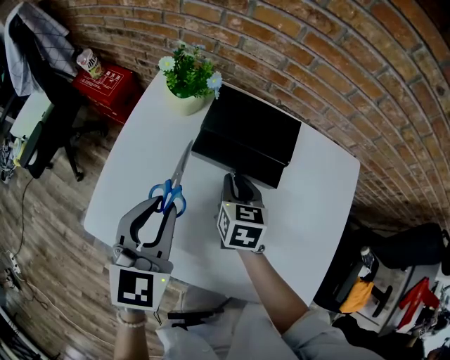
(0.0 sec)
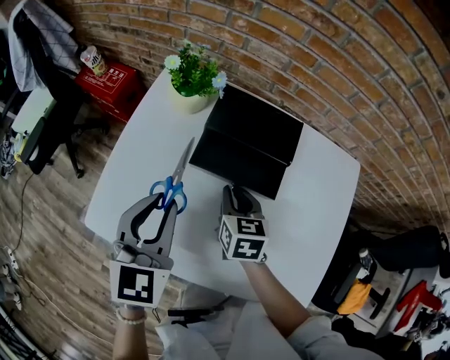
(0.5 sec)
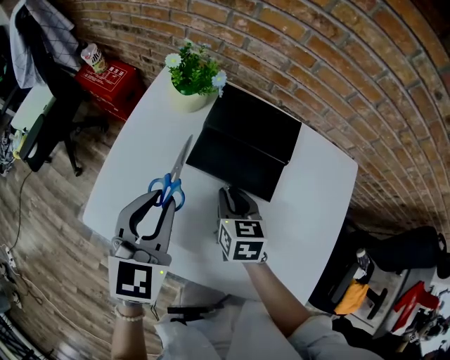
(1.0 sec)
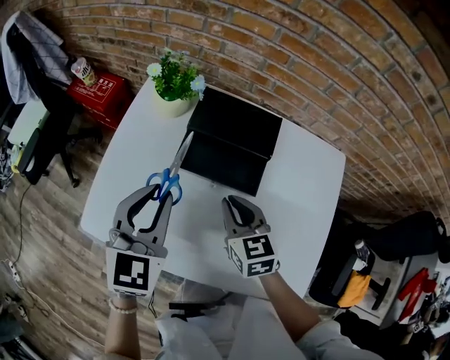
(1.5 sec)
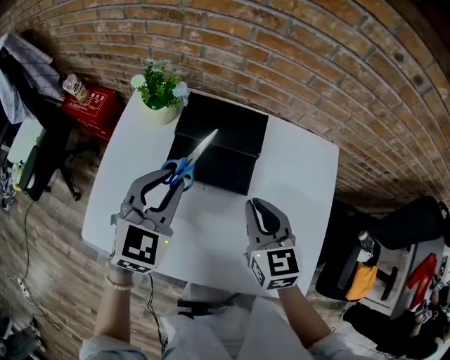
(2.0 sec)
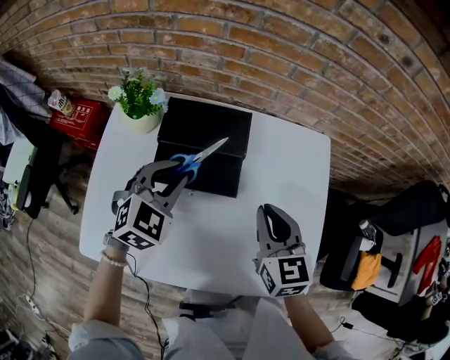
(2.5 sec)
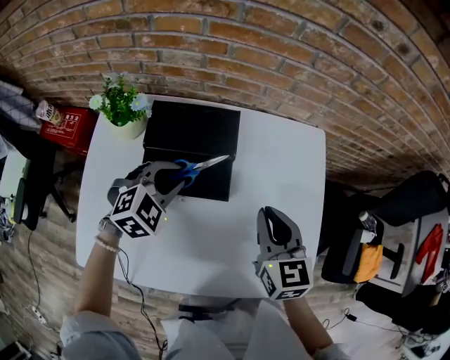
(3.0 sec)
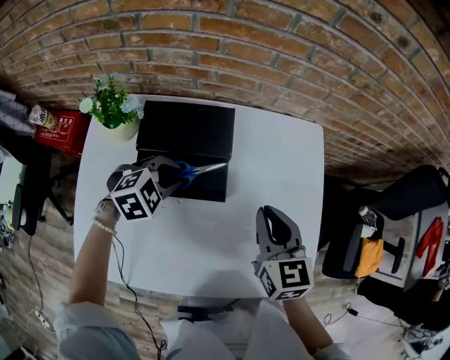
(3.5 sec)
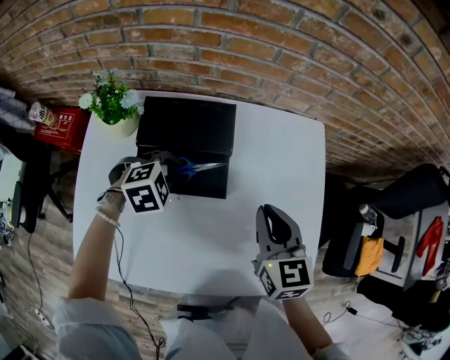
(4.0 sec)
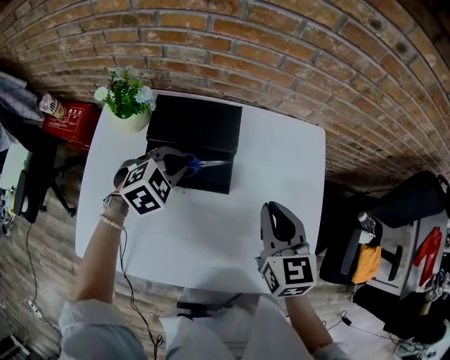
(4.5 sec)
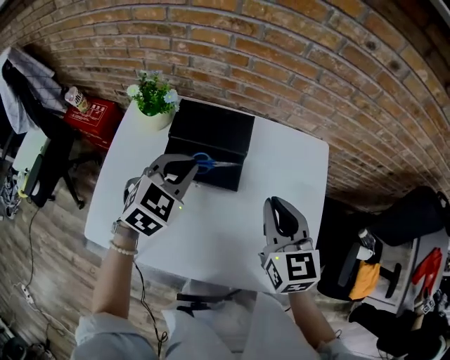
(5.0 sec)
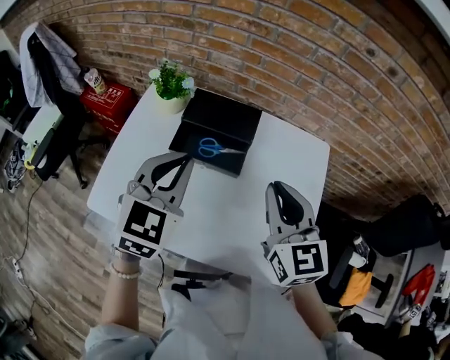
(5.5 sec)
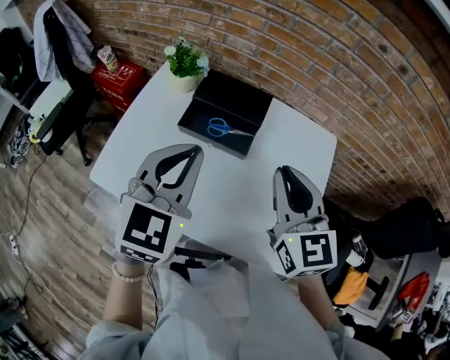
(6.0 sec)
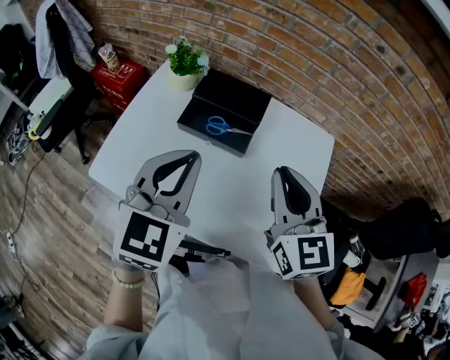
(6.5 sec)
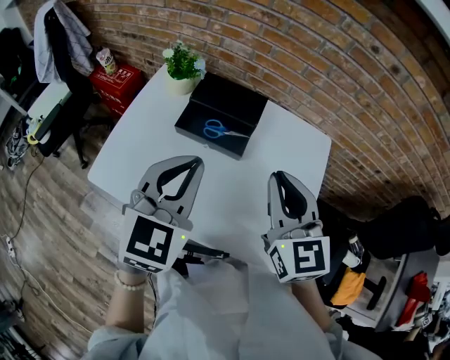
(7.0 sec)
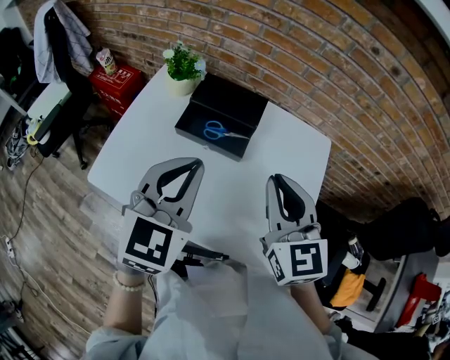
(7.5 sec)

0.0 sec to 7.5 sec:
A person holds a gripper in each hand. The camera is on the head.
0.0 sec to 2.0 sec: The left gripper heads to the right, covering approximately 5 cm, and swivels approximately 20 degrees; the right gripper is displaced upward, to the right and backward by some 15 cm.
2.0 sec to 4.0 sec: The right gripper moves some 10 cm. Meanwhile the left gripper shifts some 15 cm downward, and angles its fingers downward, by some 40 degrees.
4.0 sec to 5.5 sec: The left gripper moves upward, approximately 25 cm, and angles its fingers upward, by roughly 40 degrees. The right gripper goes about 15 cm upward, and swivels approximately 20 degrees.
5.5 sec to 7.5 sec: The left gripper goes roughly 10 cm backward, while the right gripper moves about 5 cm.

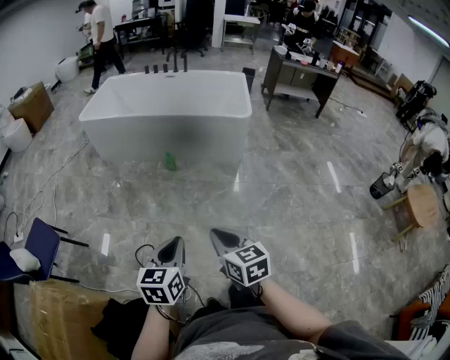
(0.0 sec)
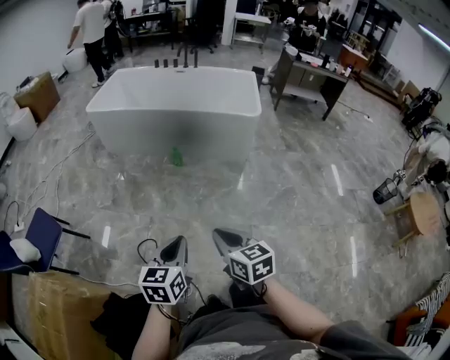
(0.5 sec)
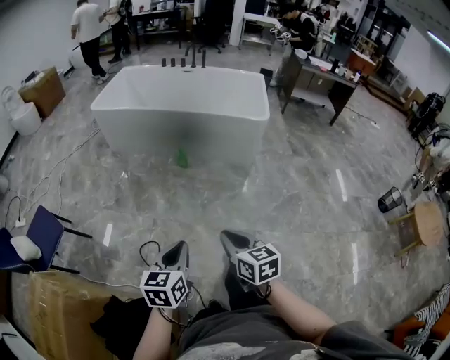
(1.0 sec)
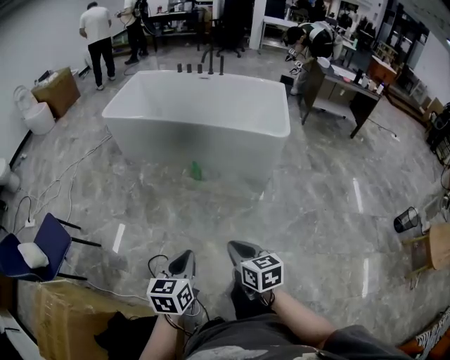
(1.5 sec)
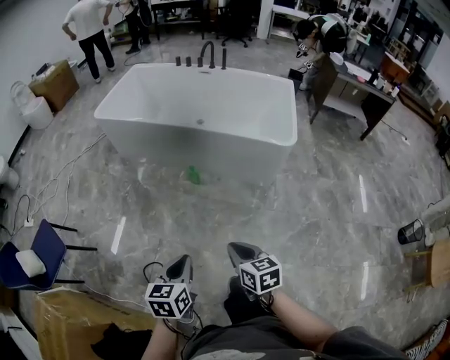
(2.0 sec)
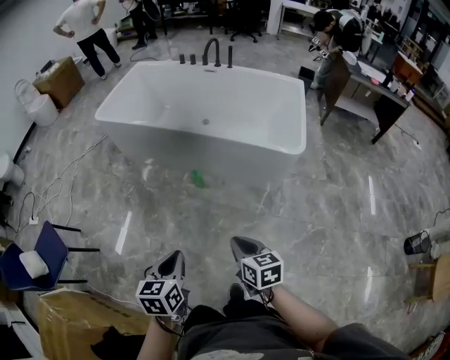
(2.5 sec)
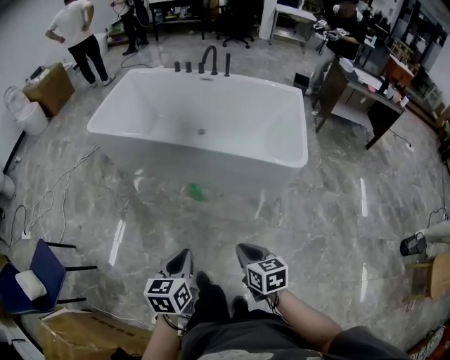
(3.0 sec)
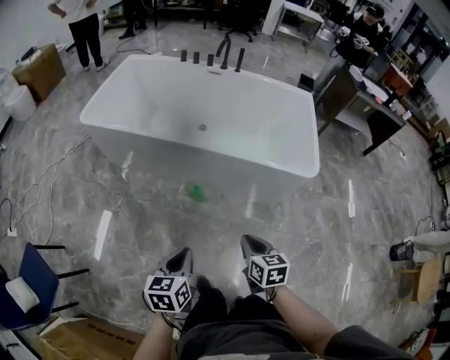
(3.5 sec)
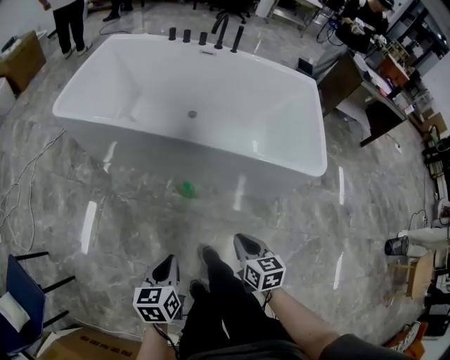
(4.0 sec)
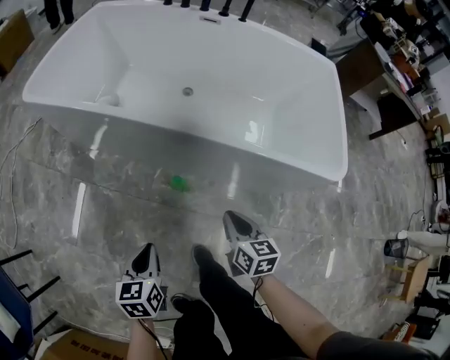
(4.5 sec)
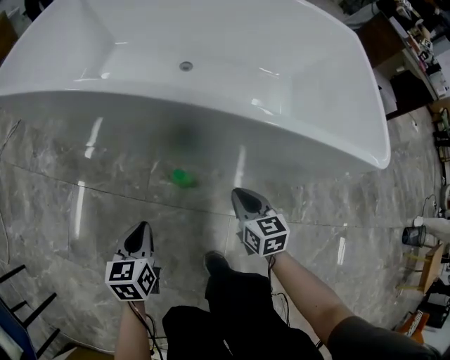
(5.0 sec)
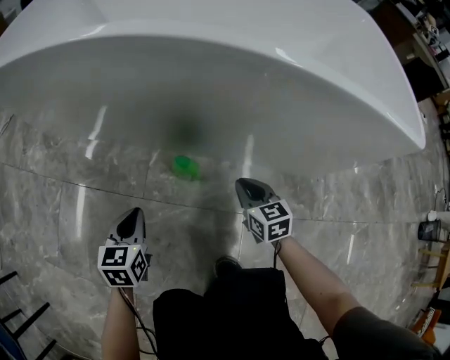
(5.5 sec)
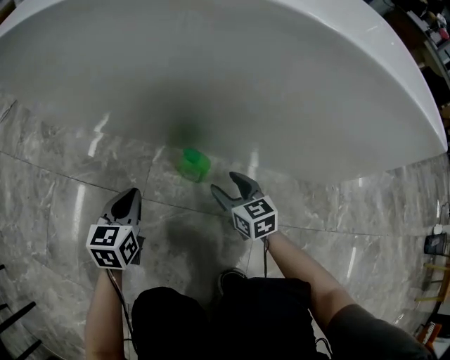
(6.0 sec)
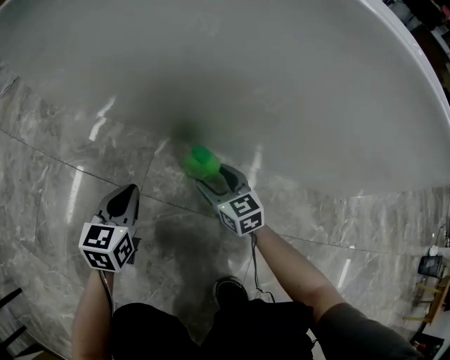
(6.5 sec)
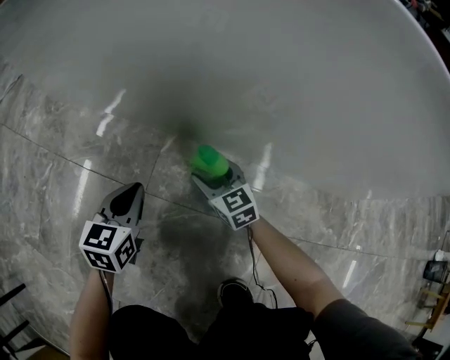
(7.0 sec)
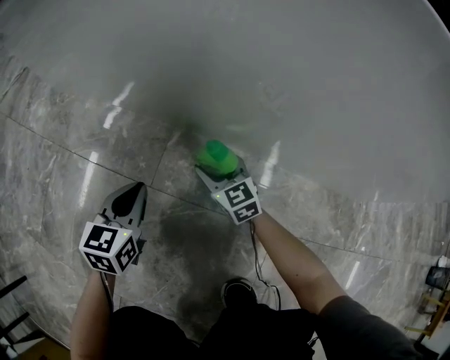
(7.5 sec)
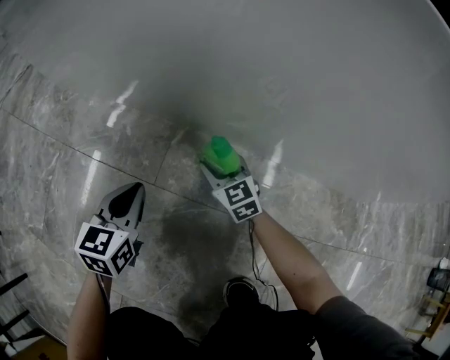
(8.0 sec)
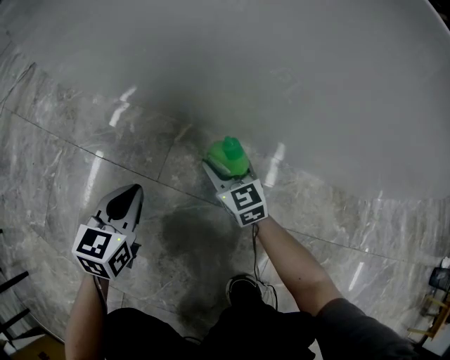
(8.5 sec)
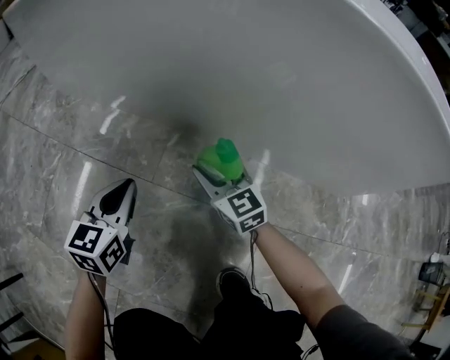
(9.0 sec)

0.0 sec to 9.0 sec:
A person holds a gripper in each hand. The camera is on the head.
0.0 sec to 2.0 sec: The grippers both shift forward by approximately 25 cm.
2.0 sec to 4.5 sec: The pair of grippers is taken forward, approximately 40 cm. Both grippers move downward, some 30 cm.
4.5 sec to 7.0 sec: The right gripper travels downward by about 50 cm, rotates approximately 40 degrees, and opens up. The left gripper heads downward and forward, covering about 40 cm.
7.0 sec to 9.0 sec: The two grippers go some 10 cm upward.

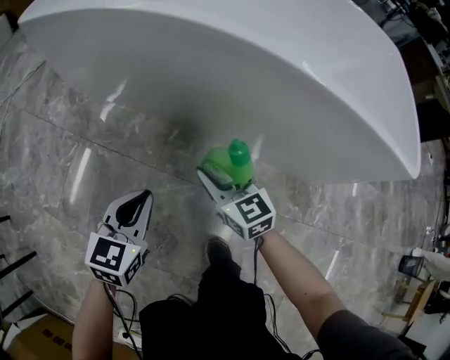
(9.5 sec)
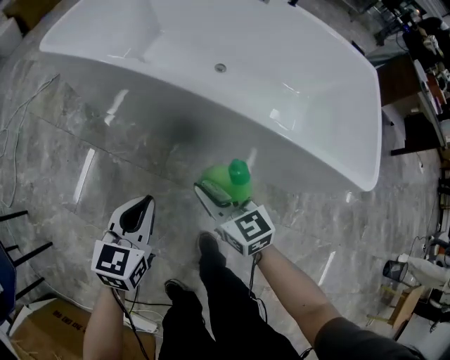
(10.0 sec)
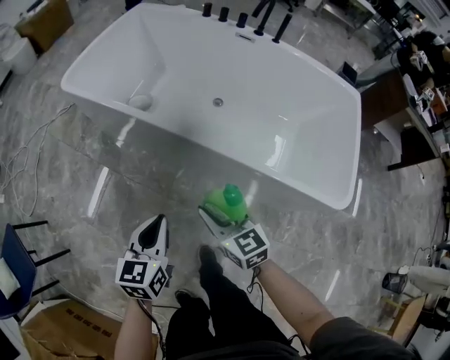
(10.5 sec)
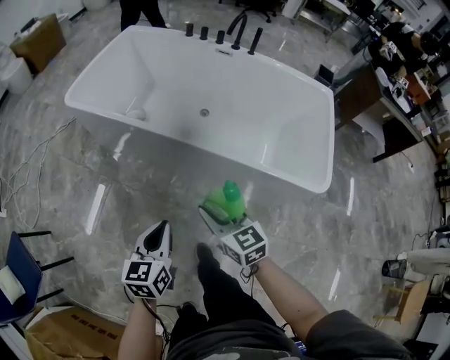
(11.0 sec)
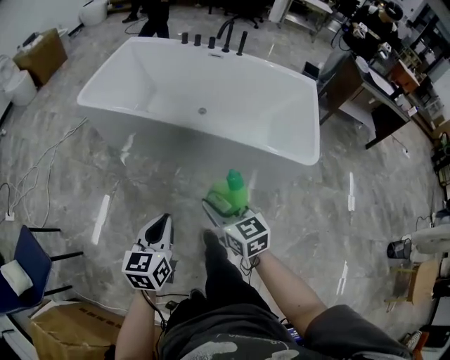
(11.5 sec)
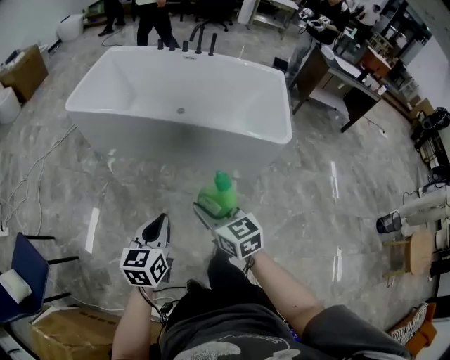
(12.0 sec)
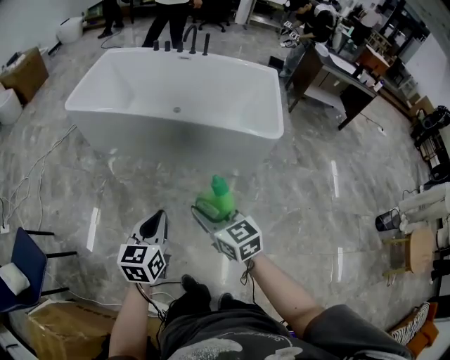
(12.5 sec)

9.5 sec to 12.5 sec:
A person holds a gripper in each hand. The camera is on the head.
9.5 sec to 11.0 sec: The grippers both shift upward by approximately 40 cm.
11.0 sec to 12.5 sec: The left gripper shifts roughly 25 cm backward and upward. Meanwhile the right gripper heads backward, covering about 30 cm.

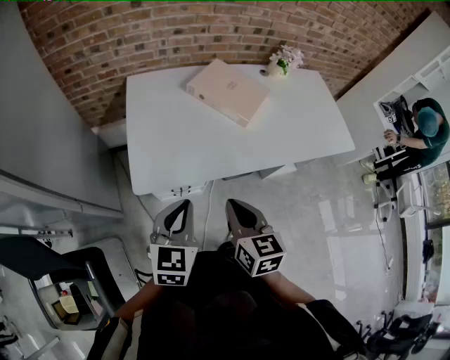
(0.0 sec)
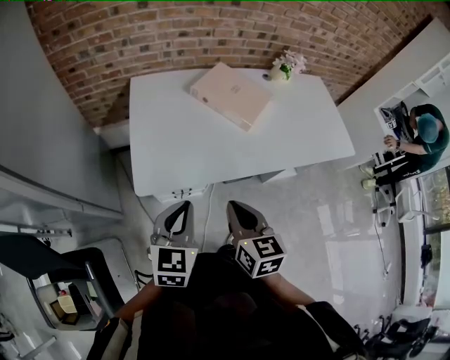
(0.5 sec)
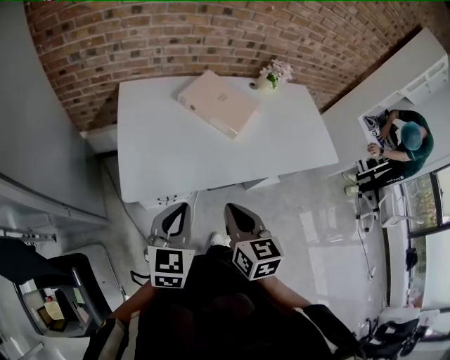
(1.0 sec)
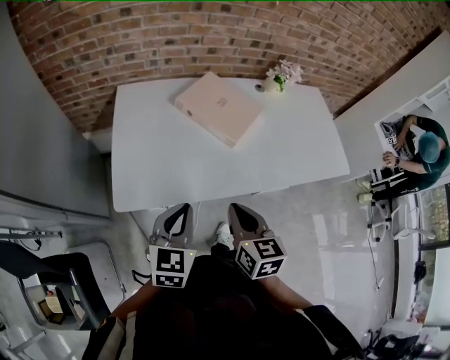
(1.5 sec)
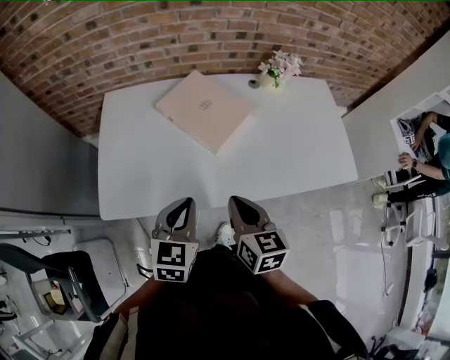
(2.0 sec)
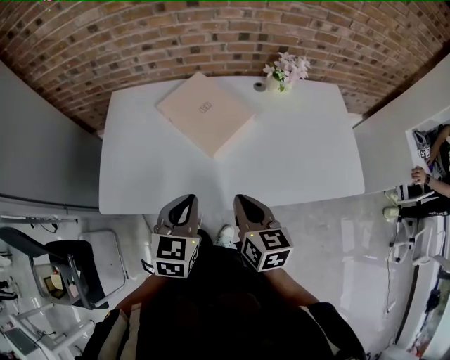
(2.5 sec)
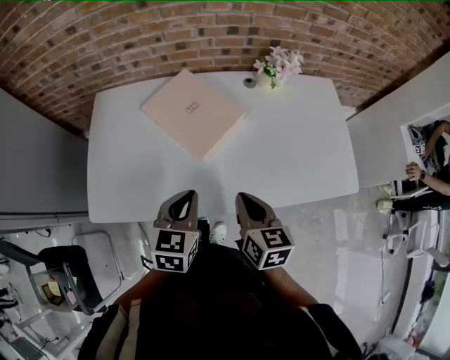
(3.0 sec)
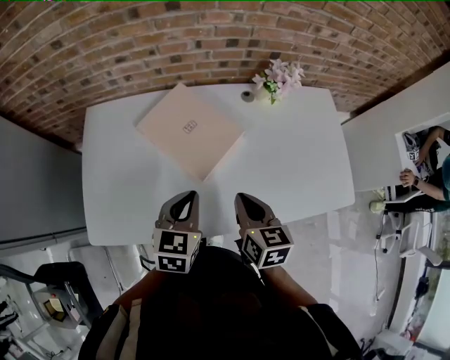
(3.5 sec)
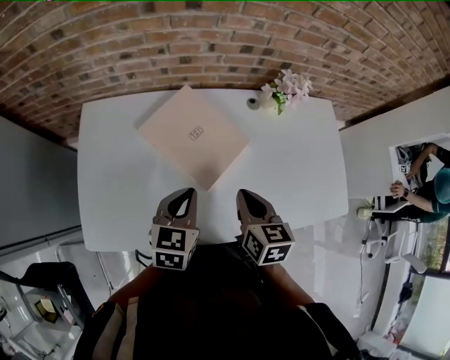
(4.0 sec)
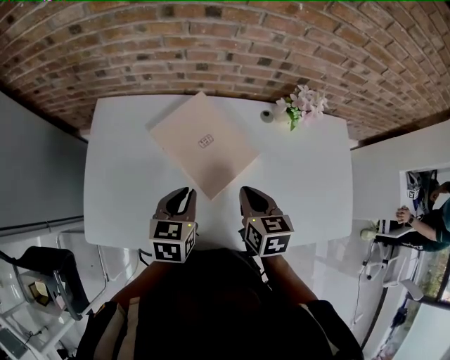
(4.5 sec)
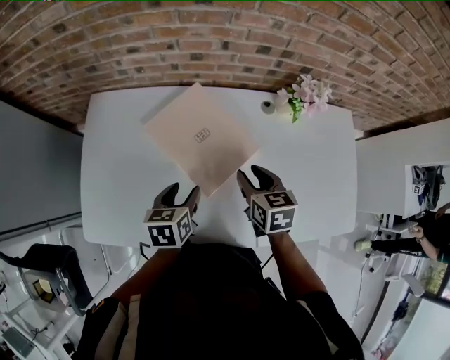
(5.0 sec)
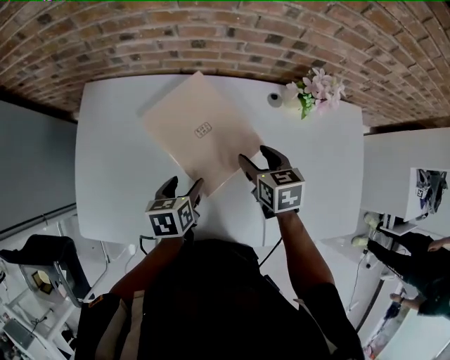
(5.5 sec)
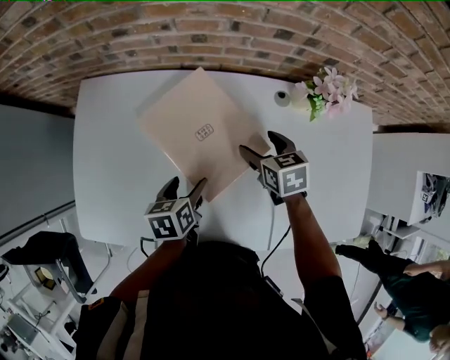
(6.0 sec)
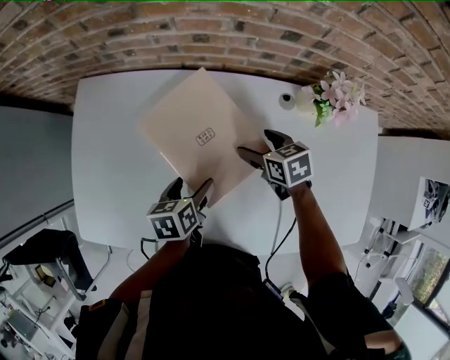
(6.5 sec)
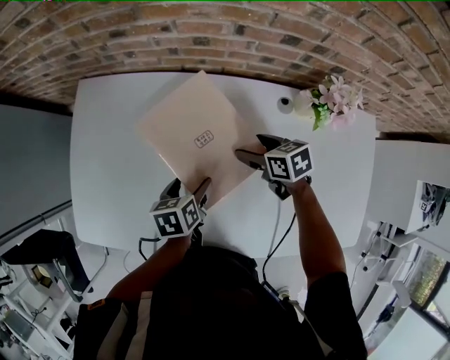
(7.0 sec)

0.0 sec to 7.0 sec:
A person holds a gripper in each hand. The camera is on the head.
0.0 sec to 2.0 sec: Both grippers travel together to the right and forward, about 25 cm.
2.0 sec to 3.5 sec: Both grippers move forward and to the right, roughly 15 cm.
3.5 sec to 5.0 sec: The right gripper heads forward, covering about 15 cm, and opens its fingers; the left gripper is displaced downward and forward by about 10 cm, swivels roughly 30 degrees, and opens up.
5.0 sec to 7.0 sec: The right gripper travels downward and forward by some 15 cm, changes its angle by some 30 degrees, and opens up; the left gripper goes approximately 10 cm downward, and opens.
